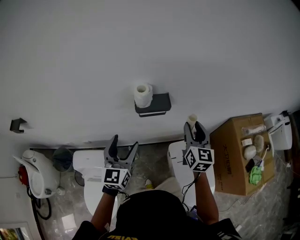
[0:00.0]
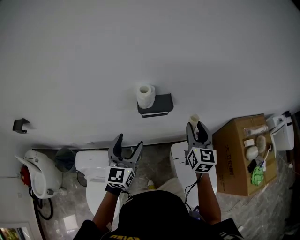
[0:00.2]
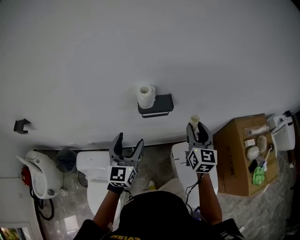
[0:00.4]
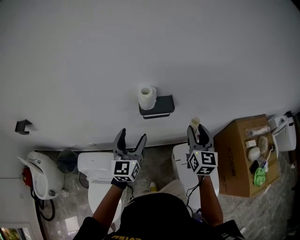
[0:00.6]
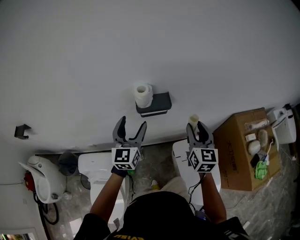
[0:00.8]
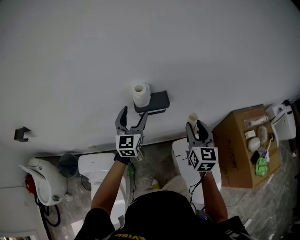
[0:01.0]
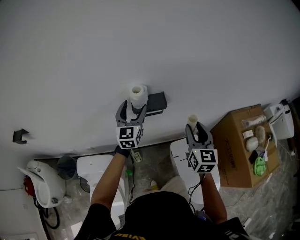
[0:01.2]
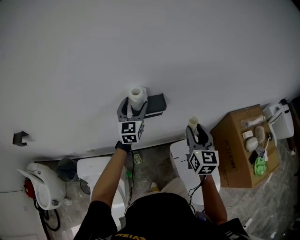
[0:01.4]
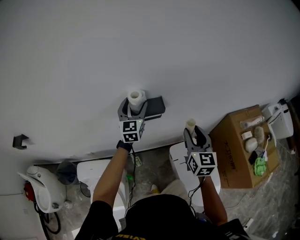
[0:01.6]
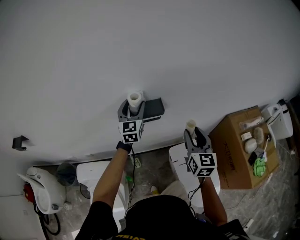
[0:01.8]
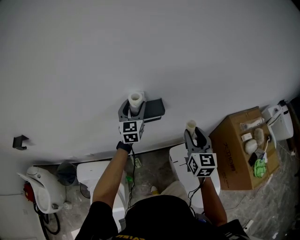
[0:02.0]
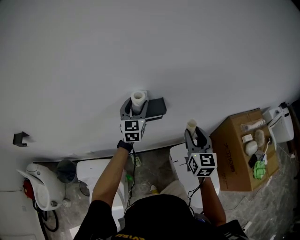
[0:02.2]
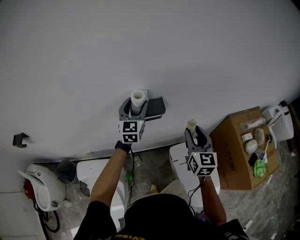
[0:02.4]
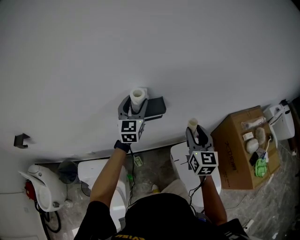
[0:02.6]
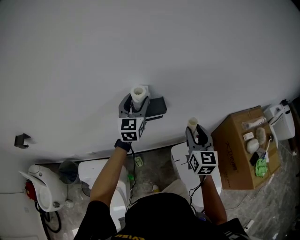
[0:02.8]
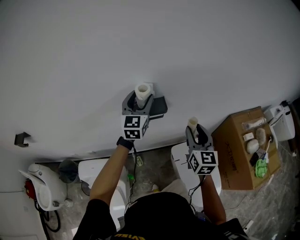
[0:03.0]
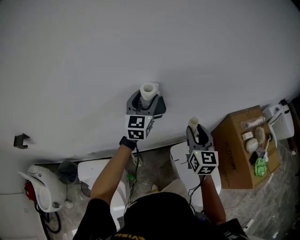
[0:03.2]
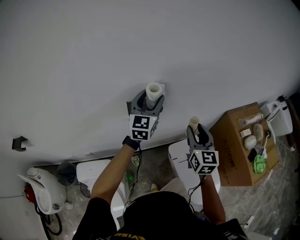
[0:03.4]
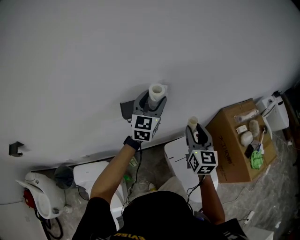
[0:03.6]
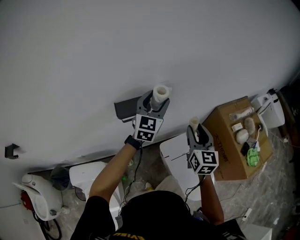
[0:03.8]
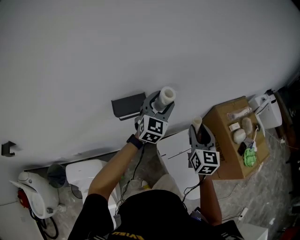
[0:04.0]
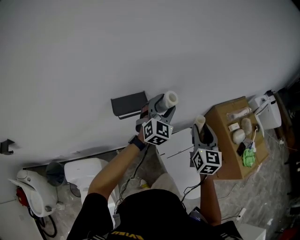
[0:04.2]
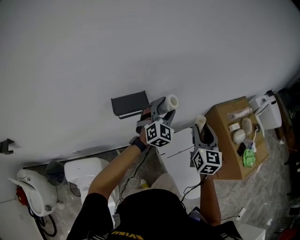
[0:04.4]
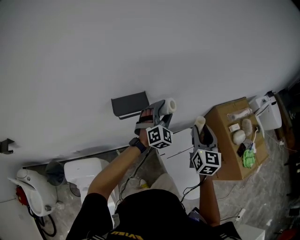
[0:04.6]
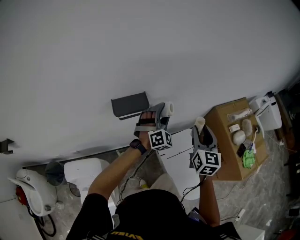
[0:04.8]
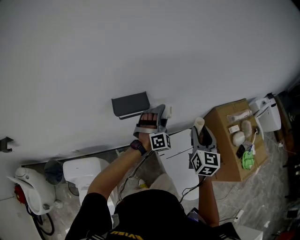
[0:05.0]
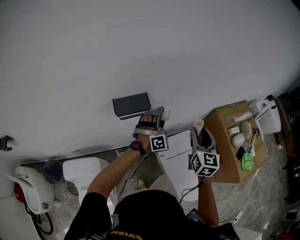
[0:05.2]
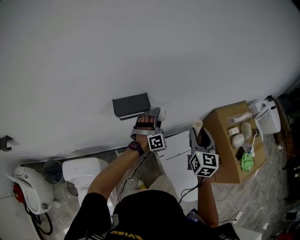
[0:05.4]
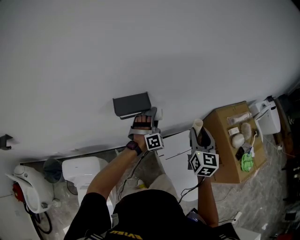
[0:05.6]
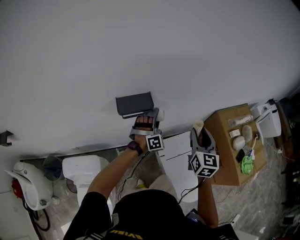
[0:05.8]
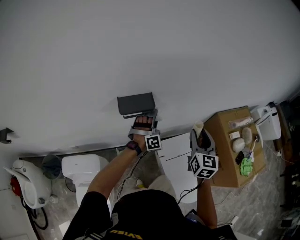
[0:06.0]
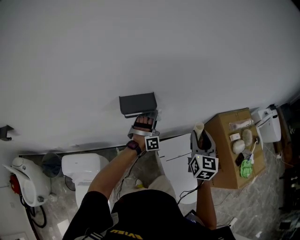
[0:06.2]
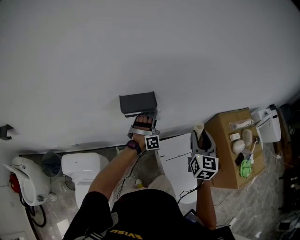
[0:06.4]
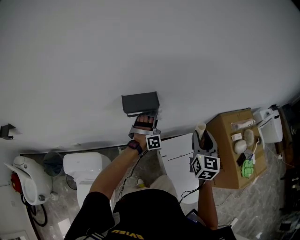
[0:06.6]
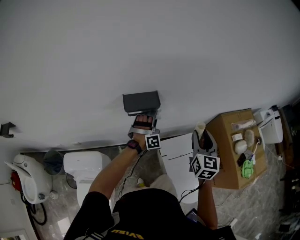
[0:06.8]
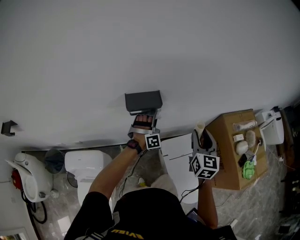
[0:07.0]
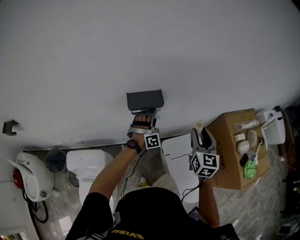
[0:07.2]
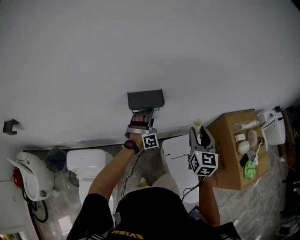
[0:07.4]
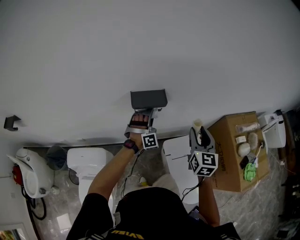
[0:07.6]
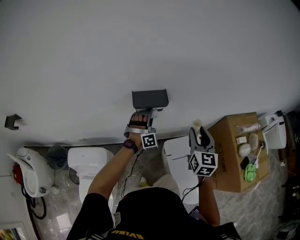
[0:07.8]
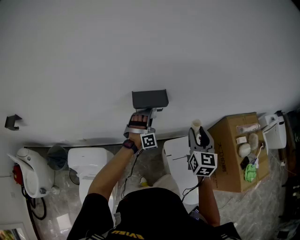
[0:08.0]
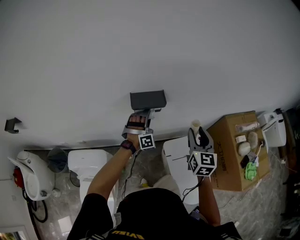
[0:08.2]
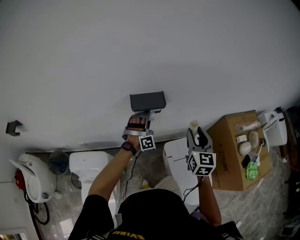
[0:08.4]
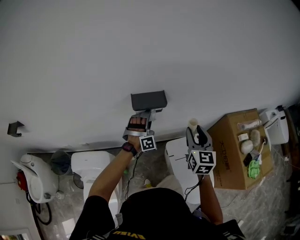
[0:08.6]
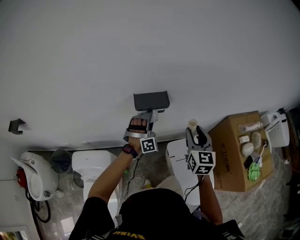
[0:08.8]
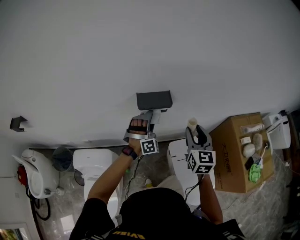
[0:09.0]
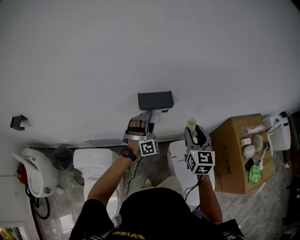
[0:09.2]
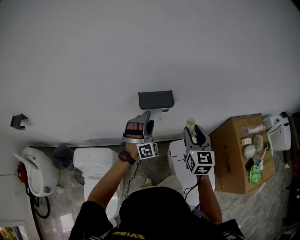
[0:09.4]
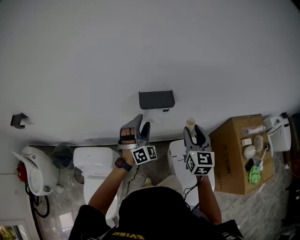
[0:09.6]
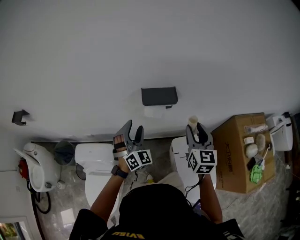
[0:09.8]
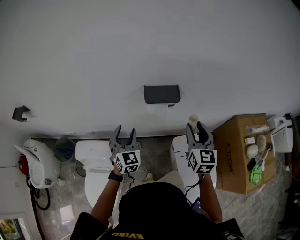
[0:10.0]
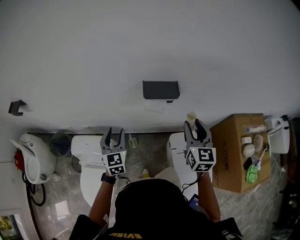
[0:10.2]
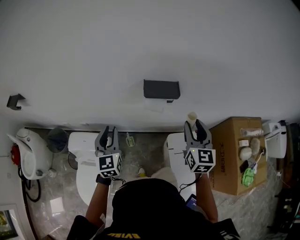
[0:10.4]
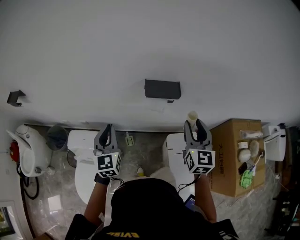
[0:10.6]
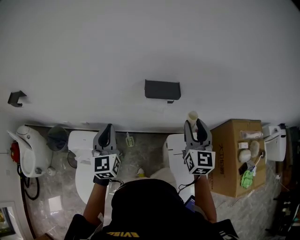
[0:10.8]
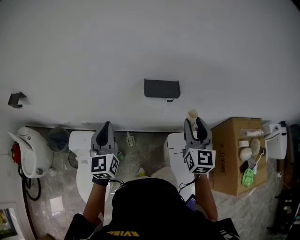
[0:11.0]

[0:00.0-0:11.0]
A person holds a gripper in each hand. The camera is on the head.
0:00.0 to 0:01.6: The left gripper is displaced forward by roughly 20 cm.
0:01.6 to 0:03.2: The left gripper moves upward and to the right, about 10 cm.
0:03.2 to 0:04.8: The left gripper is displaced to the right and downward by roughly 20 cm, and rotates around the line of its fingers by approximately 50 degrees, clockwise from behind, while the right gripper shifts approximately 10 cm to the right.
0:04.8 to 0:06.2: The left gripper heads downward and to the left, covering about 10 cm, and rotates roughly 20 degrees.
0:06.2 to 0:07.8: The right gripper moves to the left, roughly 5 cm. The left gripper travels to the left by about 10 cm.
0:07.8 to 0:09.4: The left gripper shifts roughly 5 cm upward. Meanwhile the right gripper shifts roughly 5 cm to the left.
0:09.4 to 0:11.0: The left gripper shifts approximately 25 cm to the left, backward and upward, rotates around the line of its fingers by roughly 80 degrees, counterclockwise from behind, and closes.

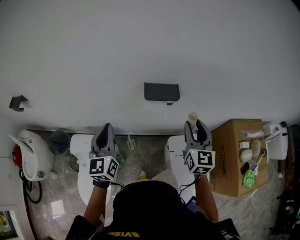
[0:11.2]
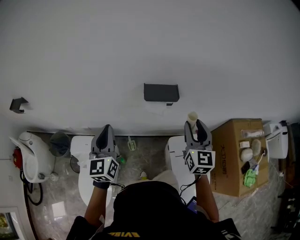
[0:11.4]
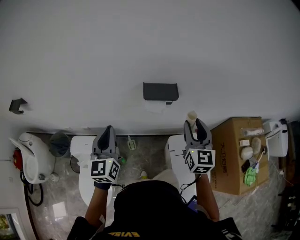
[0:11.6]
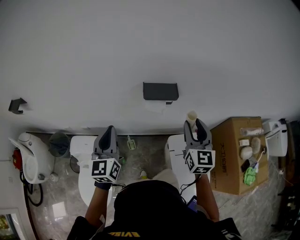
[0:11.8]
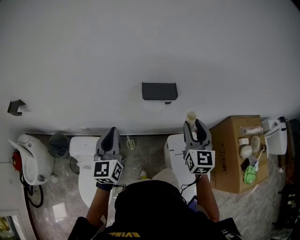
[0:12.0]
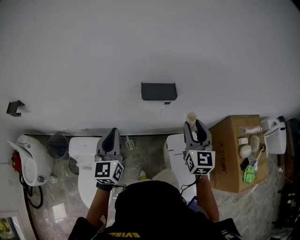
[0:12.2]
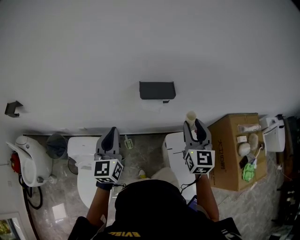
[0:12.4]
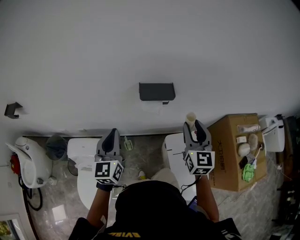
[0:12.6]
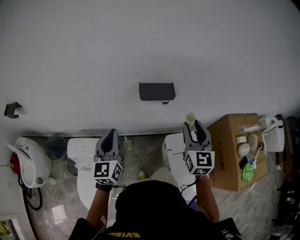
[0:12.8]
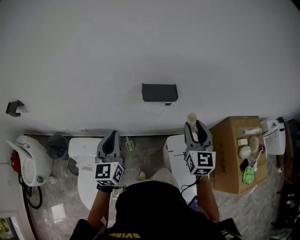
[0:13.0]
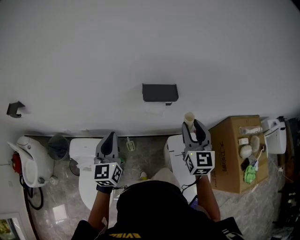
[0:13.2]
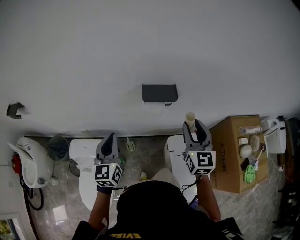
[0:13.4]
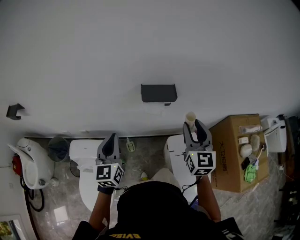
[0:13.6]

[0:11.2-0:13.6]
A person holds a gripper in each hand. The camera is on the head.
0:11.2 to 0:13.6: The grippers move only a little.

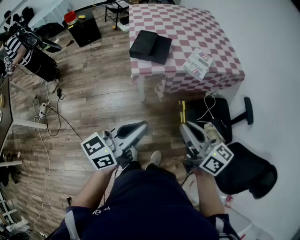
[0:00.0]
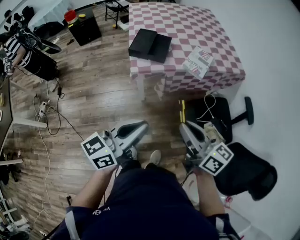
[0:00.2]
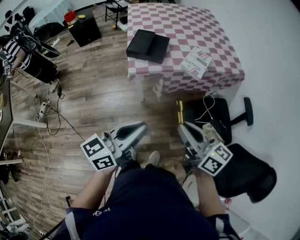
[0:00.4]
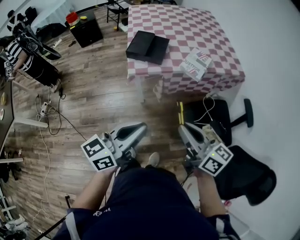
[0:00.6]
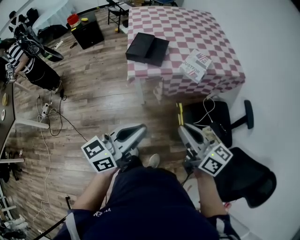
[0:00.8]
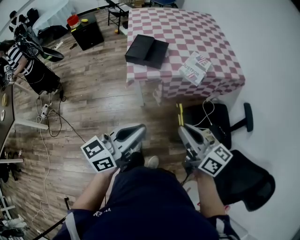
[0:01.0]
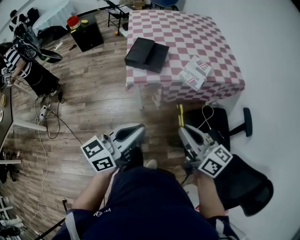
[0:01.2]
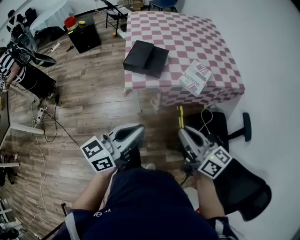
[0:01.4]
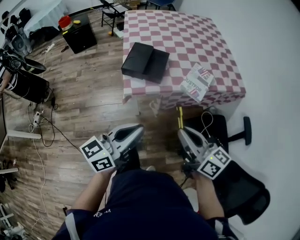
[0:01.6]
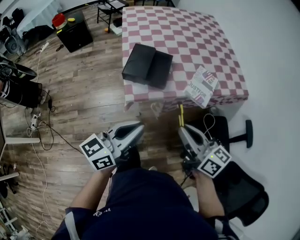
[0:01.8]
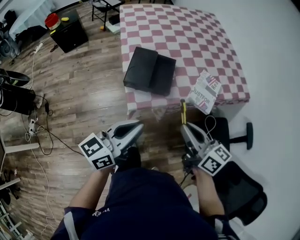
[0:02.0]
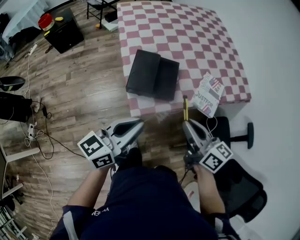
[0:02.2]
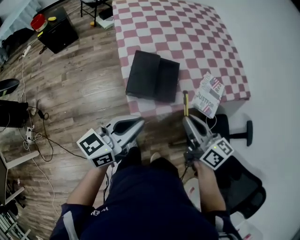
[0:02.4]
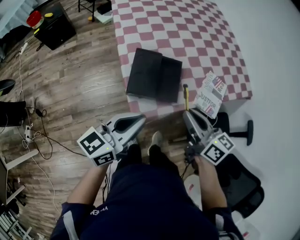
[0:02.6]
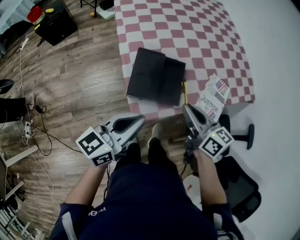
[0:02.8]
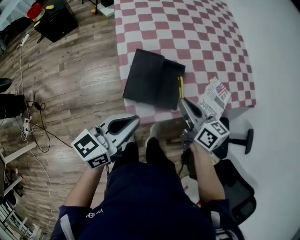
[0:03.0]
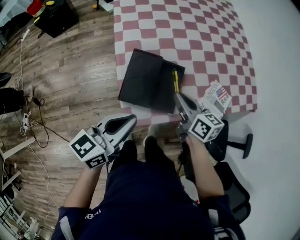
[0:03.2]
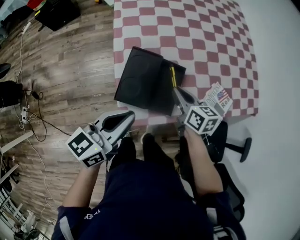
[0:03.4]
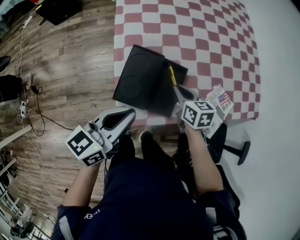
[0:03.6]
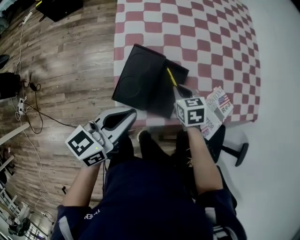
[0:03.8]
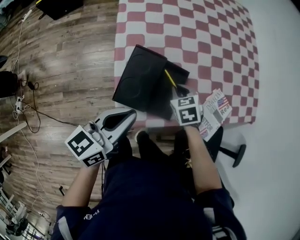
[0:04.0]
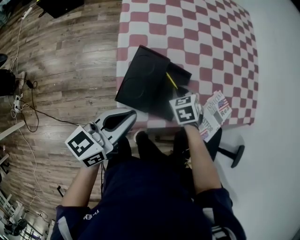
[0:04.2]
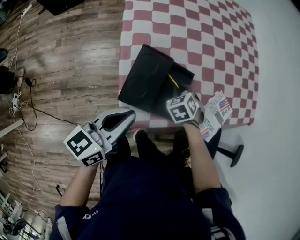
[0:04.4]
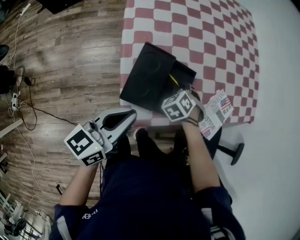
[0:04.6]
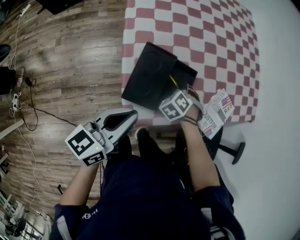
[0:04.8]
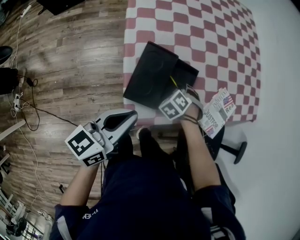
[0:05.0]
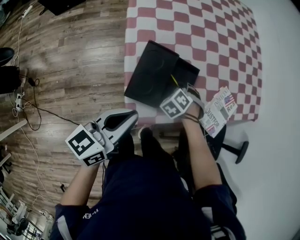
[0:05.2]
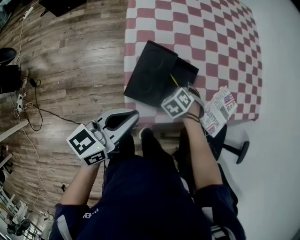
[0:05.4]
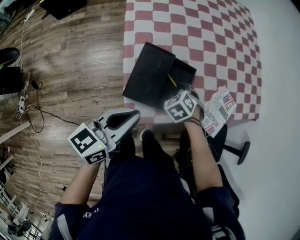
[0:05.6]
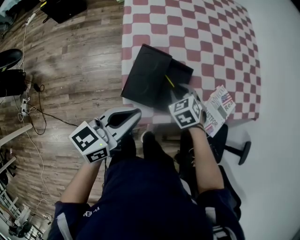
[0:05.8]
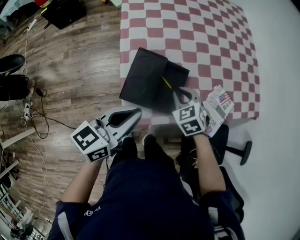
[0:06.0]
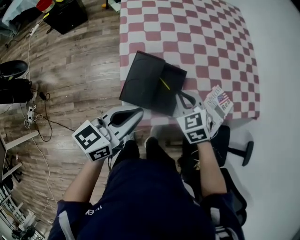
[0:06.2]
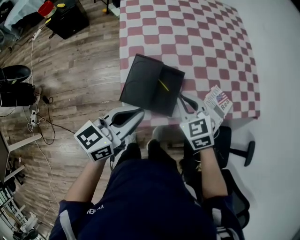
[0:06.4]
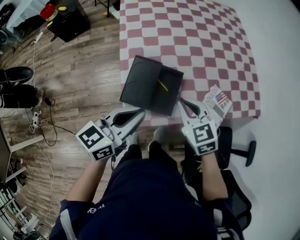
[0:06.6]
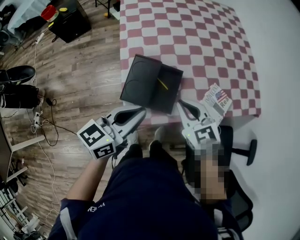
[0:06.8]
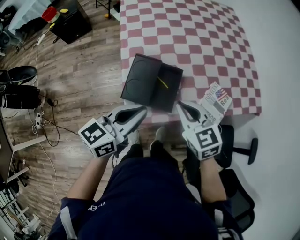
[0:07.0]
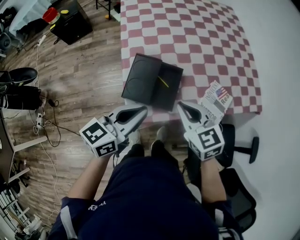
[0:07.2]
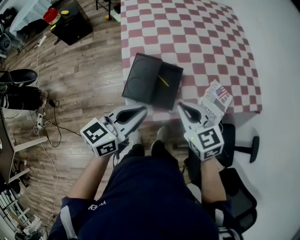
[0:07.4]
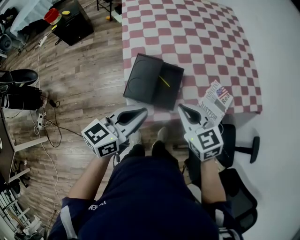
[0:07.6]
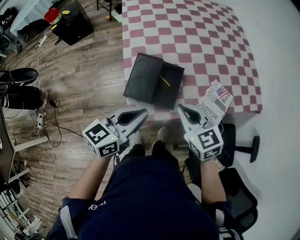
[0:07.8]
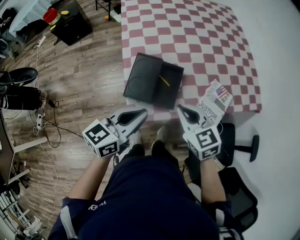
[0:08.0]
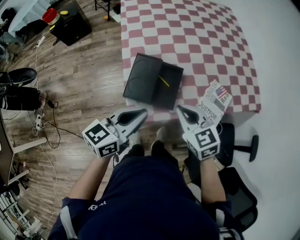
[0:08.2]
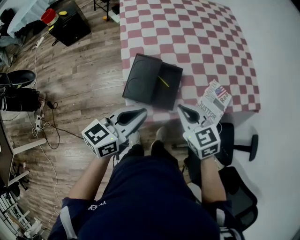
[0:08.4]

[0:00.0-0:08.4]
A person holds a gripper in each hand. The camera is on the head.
0:00.0 to 0:01.4: The grippers both shift forward by approximately 10 cm.
0:01.4 to 0:02.8: The two grippers go about 40 cm forward and to the left.
0:02.8 to 0:04.2: The right gripper travels downward and forward by some 25 cm, and points its fingers some 50 degrees further downward, while the left gripper shifts some 10 cm forward and downward.
0:04.2 to 0:05.6: The right gripper opens.
0:05.6 to 0:07.0: The right gripper moves upward, some 20 cm, tips its fingers upward by roughly 40 degrees, and closes up. Meanwhile the left gripper heads to the right and upward, covering some 10 cm.
0:07.0 to 0:08.4: The grippers stay close to where they were, moving slightly.

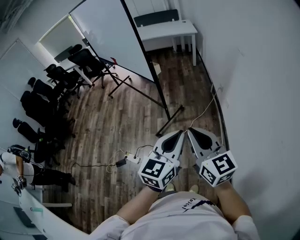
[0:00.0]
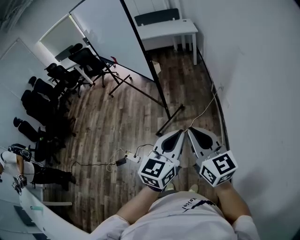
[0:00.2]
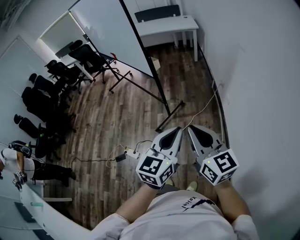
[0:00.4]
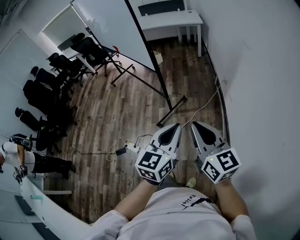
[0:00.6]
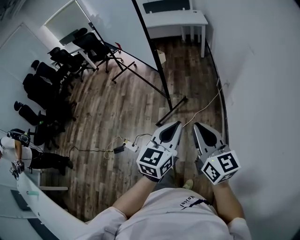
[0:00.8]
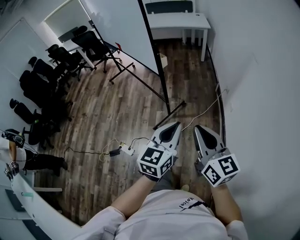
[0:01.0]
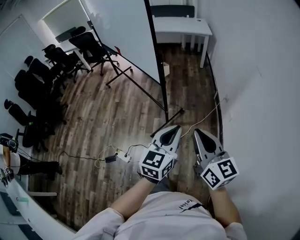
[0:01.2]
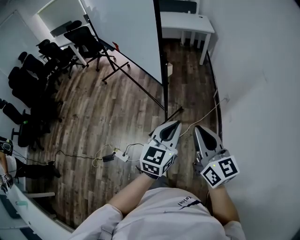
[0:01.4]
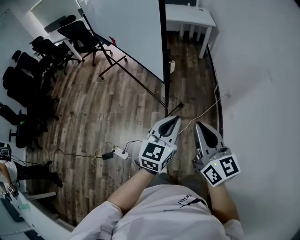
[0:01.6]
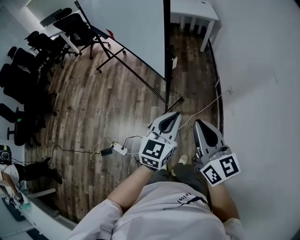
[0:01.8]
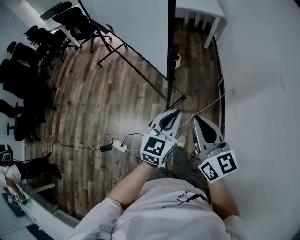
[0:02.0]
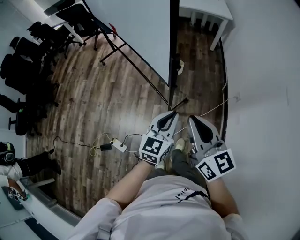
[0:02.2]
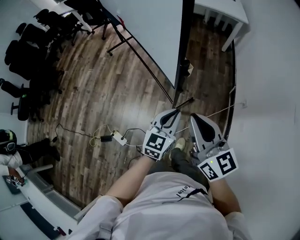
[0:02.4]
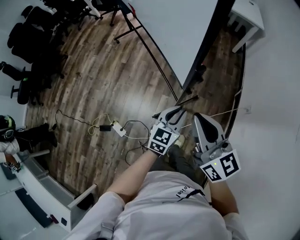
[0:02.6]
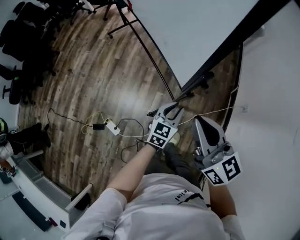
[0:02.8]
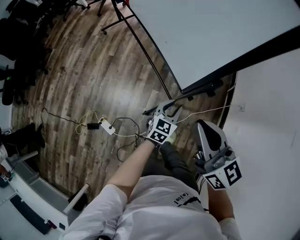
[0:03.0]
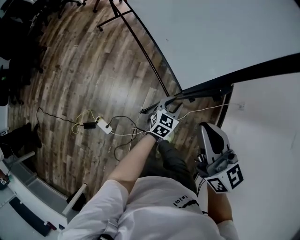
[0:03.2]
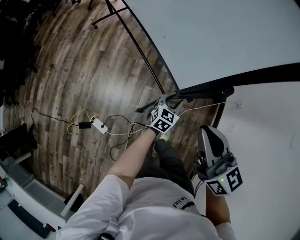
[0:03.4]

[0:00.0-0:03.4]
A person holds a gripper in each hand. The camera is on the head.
0:00.0 to 0:01.6: The left gripper goes some 30 cm forward and to the left, while the right gripper travels forward by roughly 25 cm.
0:01.6 to 0:03.4: The right gripper goes roughly 30 cm forward and downward, and swivels some 20 degrees. Meanwhile the left gripper moves downward and forward, about 50 cm, swivels approximately 20 degrees, and opens up.
